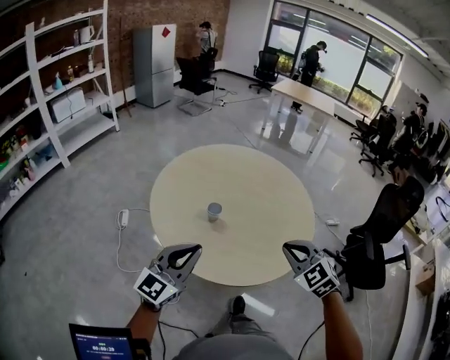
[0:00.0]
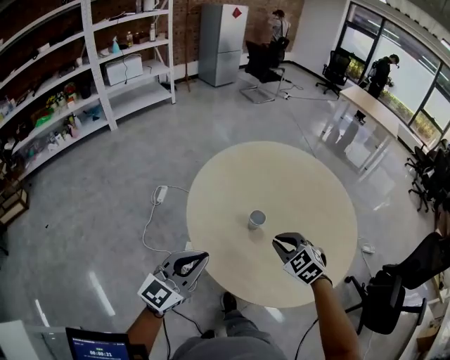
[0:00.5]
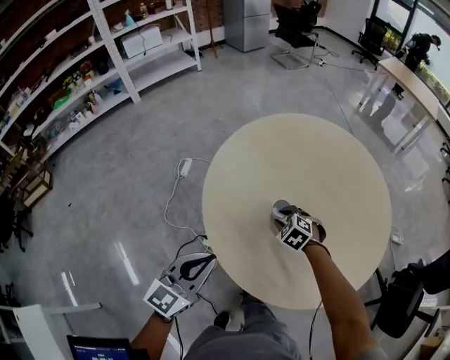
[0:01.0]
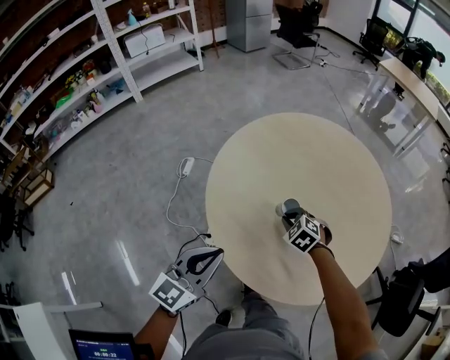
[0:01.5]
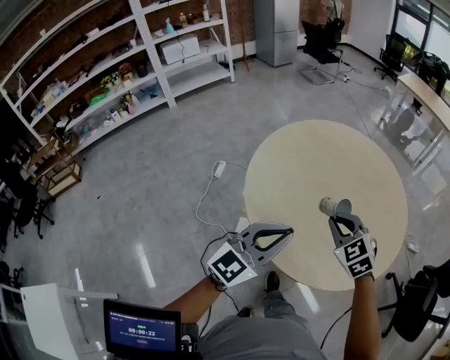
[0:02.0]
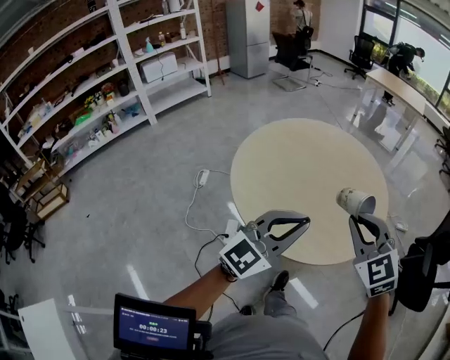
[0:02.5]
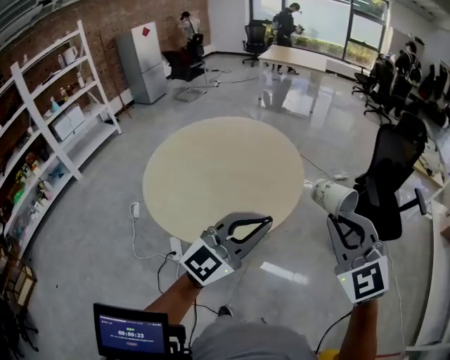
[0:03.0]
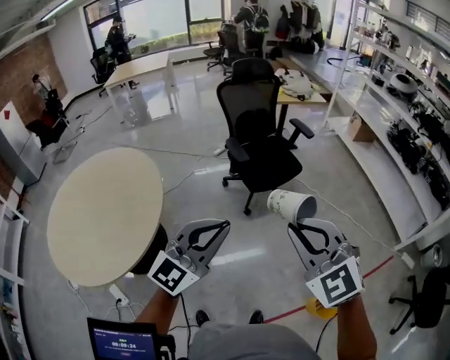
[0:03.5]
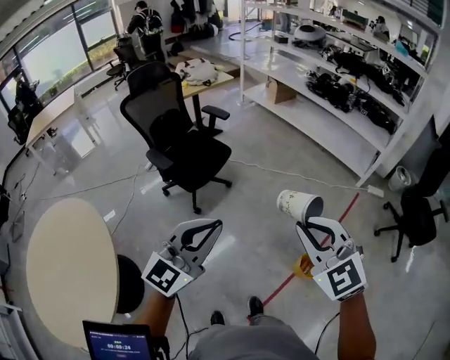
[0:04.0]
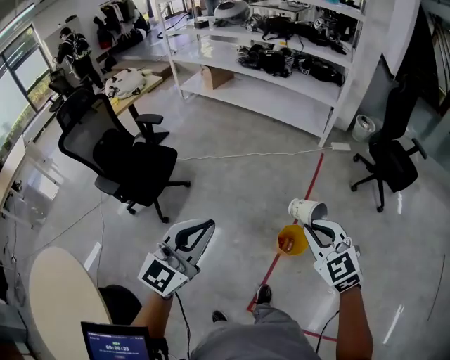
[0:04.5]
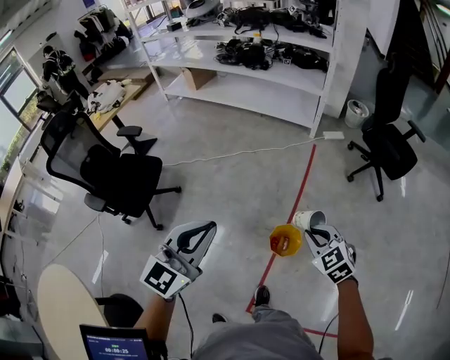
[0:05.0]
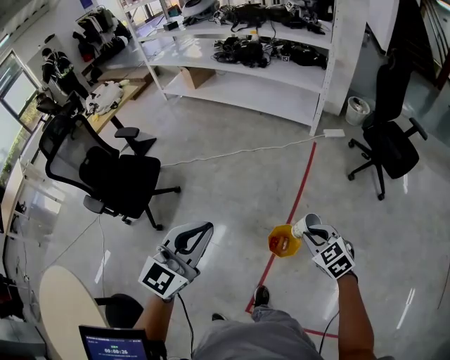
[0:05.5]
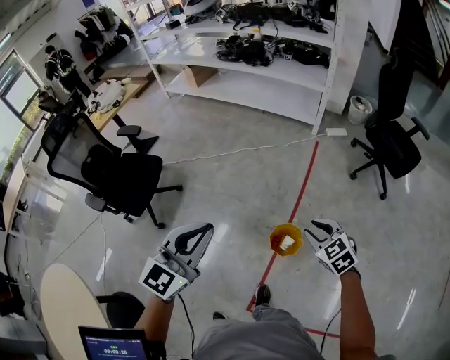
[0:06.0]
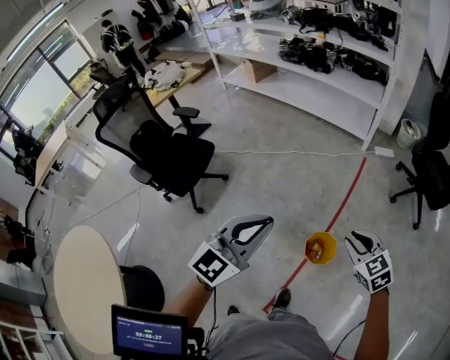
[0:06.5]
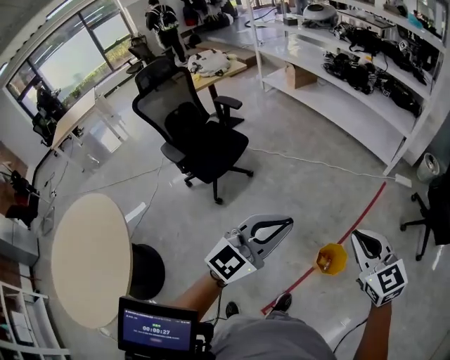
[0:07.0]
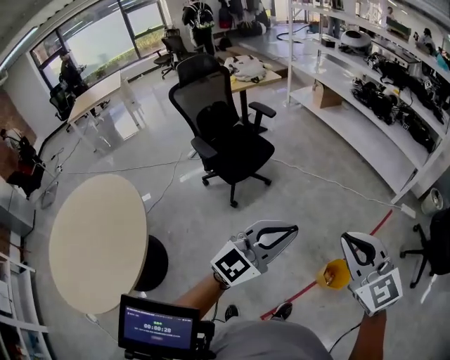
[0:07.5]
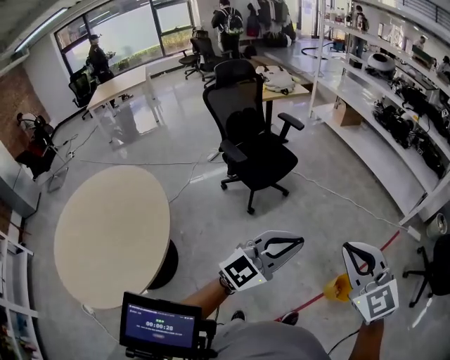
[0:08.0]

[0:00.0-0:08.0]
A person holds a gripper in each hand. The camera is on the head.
0:00.0 to 0:02.0: The right gripper reaches roughly 30 cm downward, then returns; the left gripper moves roughly 10 cm downward and comes back.
0:02.0 to 0:04.0: The two grippers travel together, some 1 m. The left gripper turns by some 90 degrees, while the right gripper turns by about 90 degrees.
0:04.0 to 0:06.0: The right gripper is displaced to the right and downward by about 50 cm, and changes its angle by roughly 40 degrees. The left gripper shifts approximately 35 cm to the right and forward, and turns by about 20 degrees.
0:06.0 to 0:08.0: The left gripper moves to the left and backward, approximately 40 cm. The right gripper shifts about 60 cm to the left, upward and backward, and tilts its fingers about 30 degrees upward.

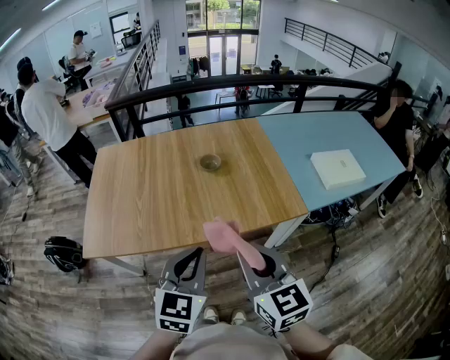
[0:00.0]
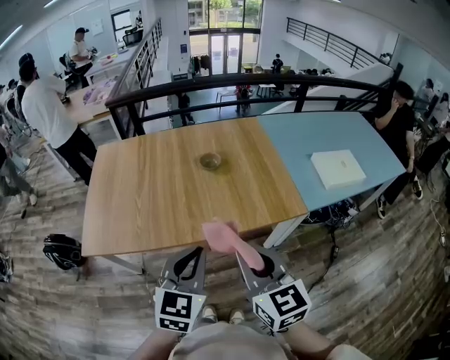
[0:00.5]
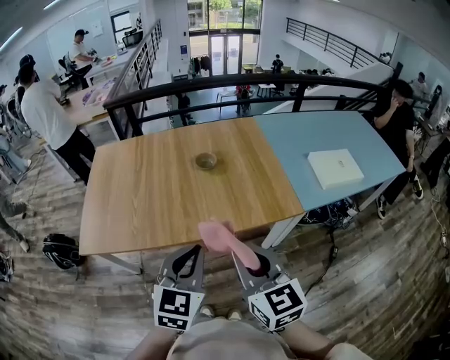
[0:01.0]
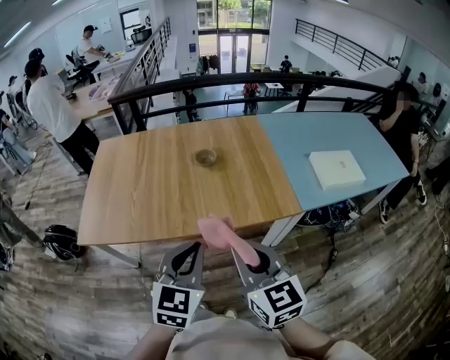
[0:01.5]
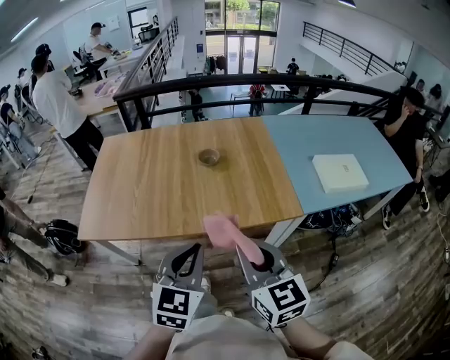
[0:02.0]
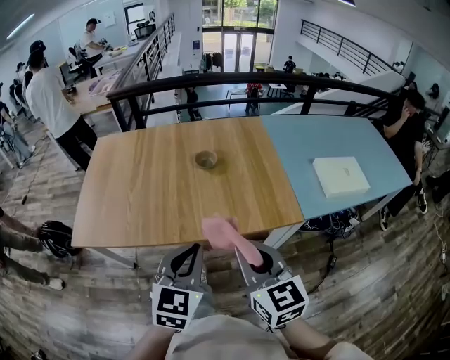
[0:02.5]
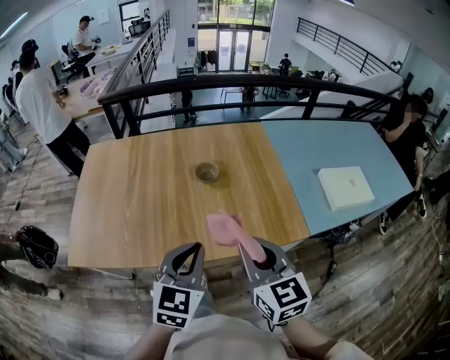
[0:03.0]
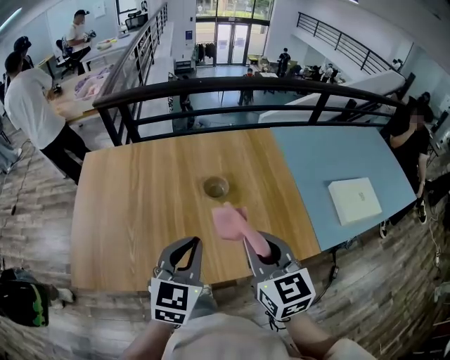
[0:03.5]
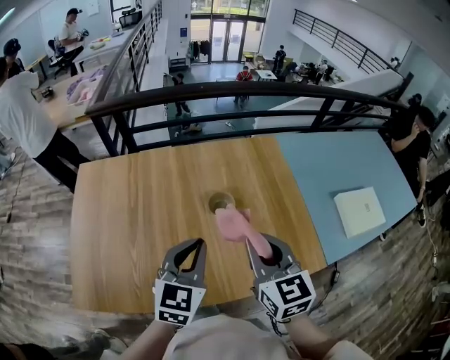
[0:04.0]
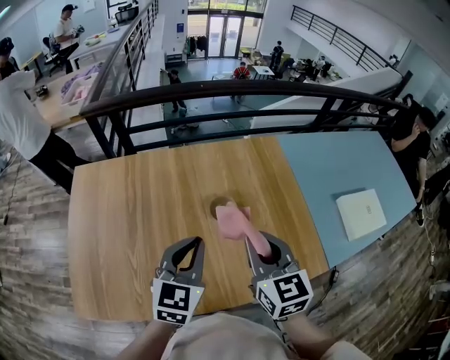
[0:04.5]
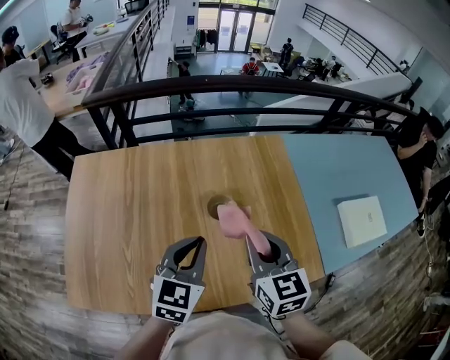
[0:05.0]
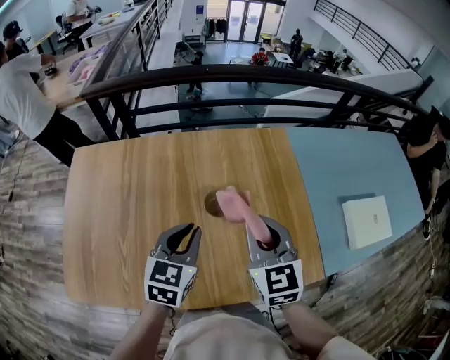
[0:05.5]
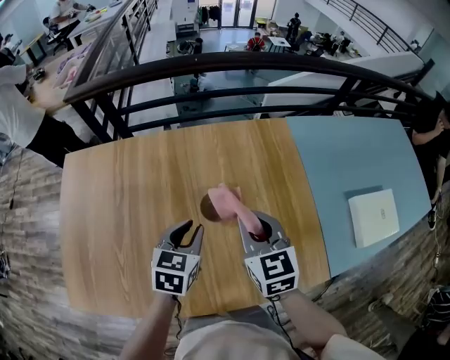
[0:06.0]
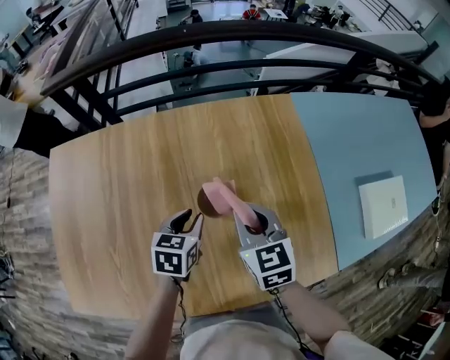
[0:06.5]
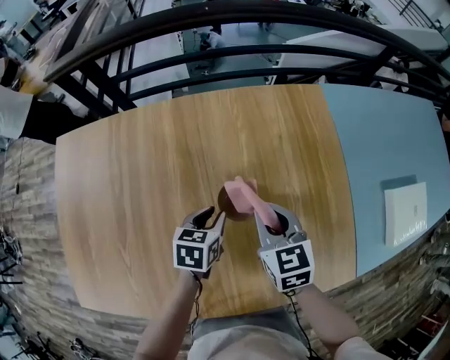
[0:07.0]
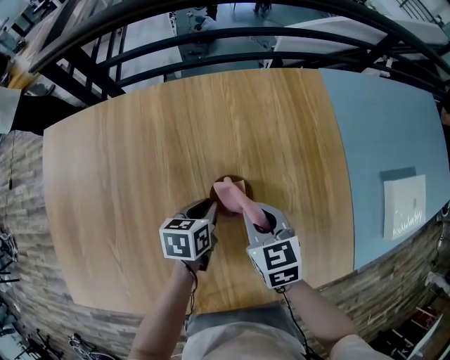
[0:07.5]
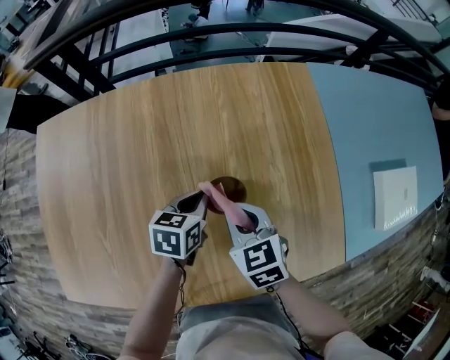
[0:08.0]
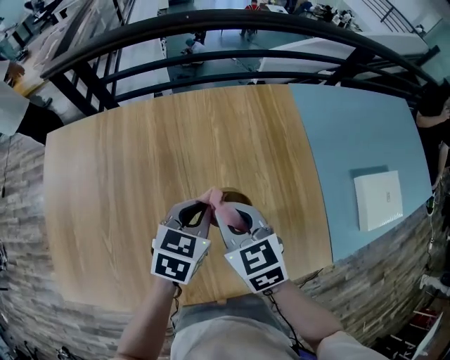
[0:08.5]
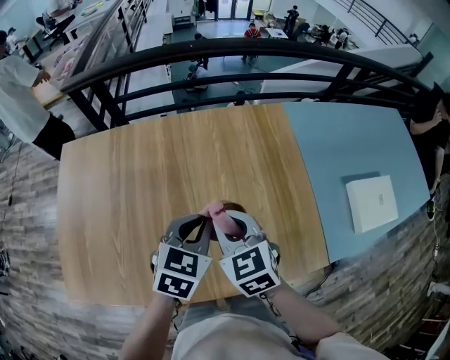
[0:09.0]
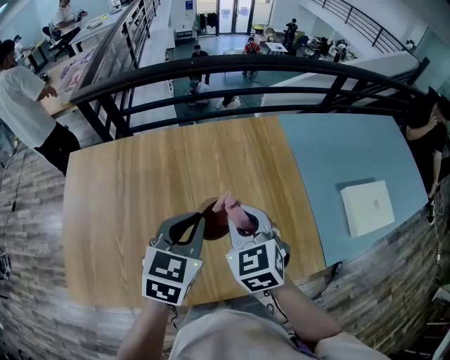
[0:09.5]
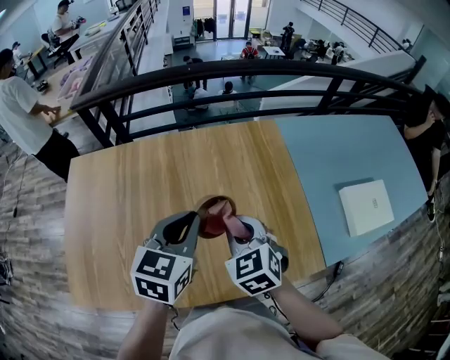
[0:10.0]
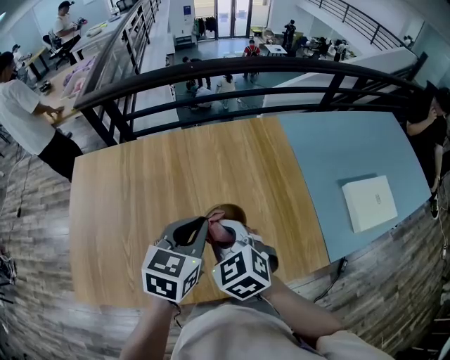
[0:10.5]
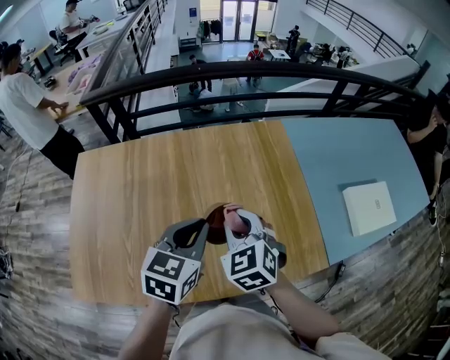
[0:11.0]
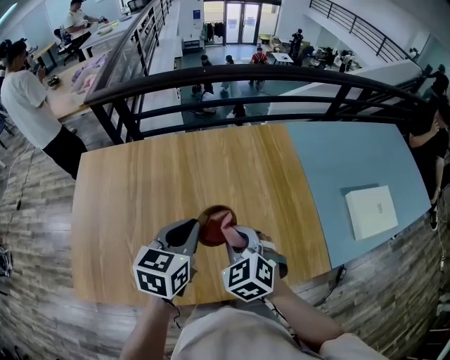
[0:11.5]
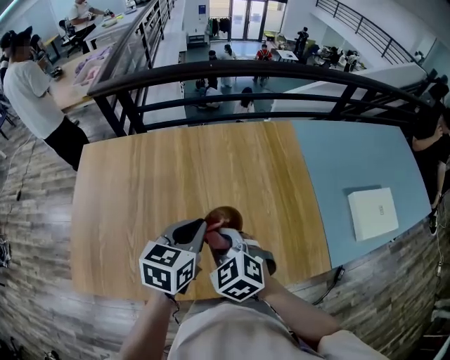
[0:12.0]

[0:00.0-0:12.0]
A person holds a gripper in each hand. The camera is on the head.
0:00.0 to 0:02.0: The grippers both shift to the right by roughly 5 cm.
0:02.0 to 0:04.0: The two grippers travel together, forward, approximately 40 cm.
0:04.0 to 0:06.0: The grippers both shift forward and downward by approximately 20 cm. The left gripper changes its angle by approximately 20 degrees.
0:06.0 to 0:08.0: The left gripper heads downward and forward, covering some 20 cm, and changes its angle by approximately 20 degrees; the right gripper is displaced downward by roughly 20 cm, and changes its angle by roughly 20 degrees.
0:08.0 to 0:10.0: The right gripper goes roughly 25 cm upward and backward. The left gripper heads upward and backward, covering some 35 cm, and changes its angle by about 30 degrees.
0:10.0 to 0:12.0: The left gripper shifts some 5 cm downward. Meanwhile the right gripper is displaced to the left and backward by about 10 cm.

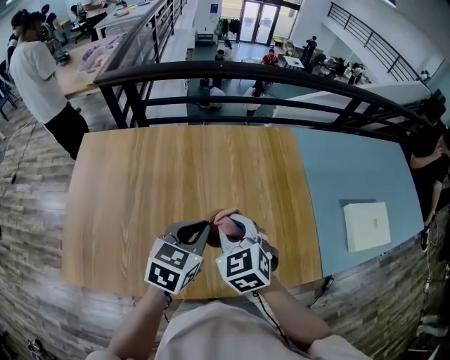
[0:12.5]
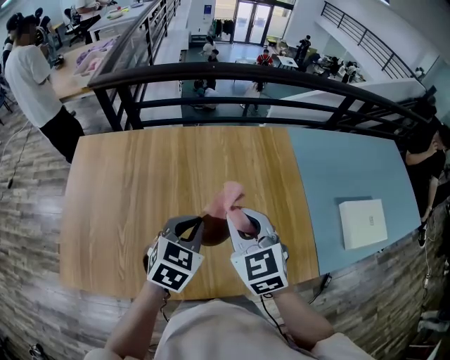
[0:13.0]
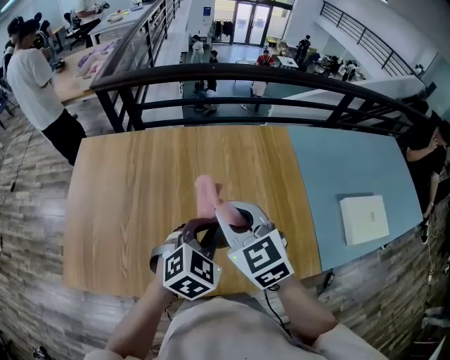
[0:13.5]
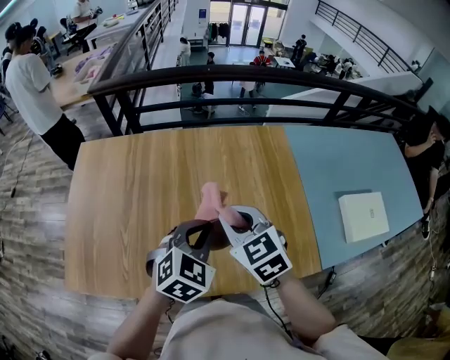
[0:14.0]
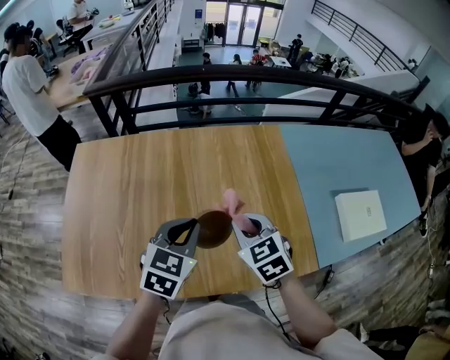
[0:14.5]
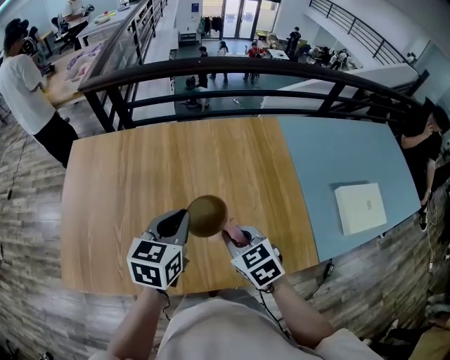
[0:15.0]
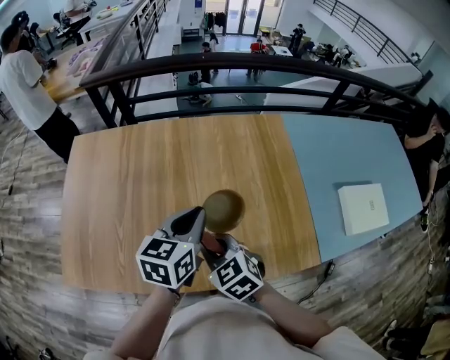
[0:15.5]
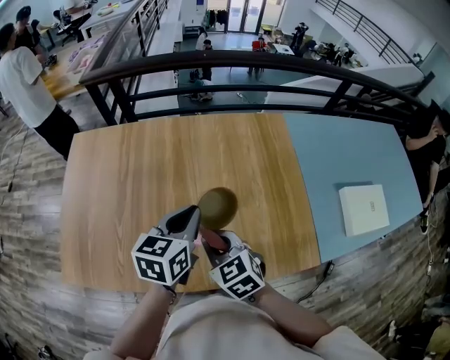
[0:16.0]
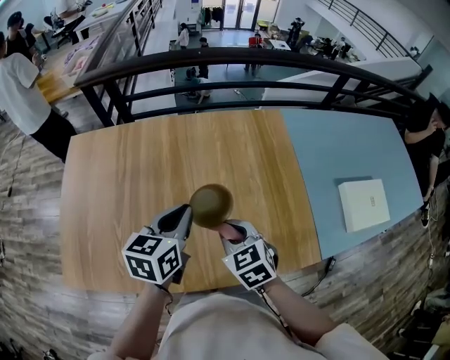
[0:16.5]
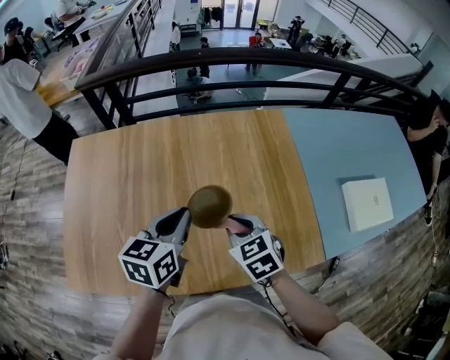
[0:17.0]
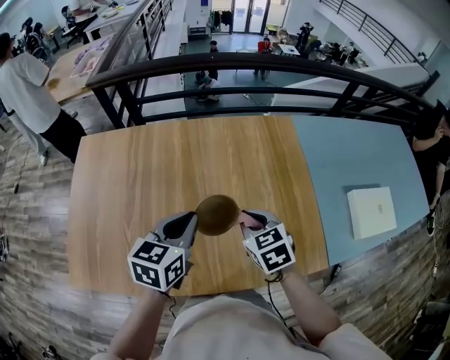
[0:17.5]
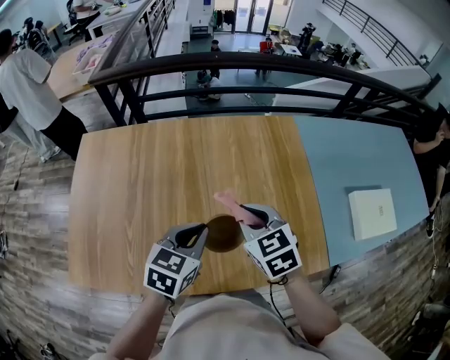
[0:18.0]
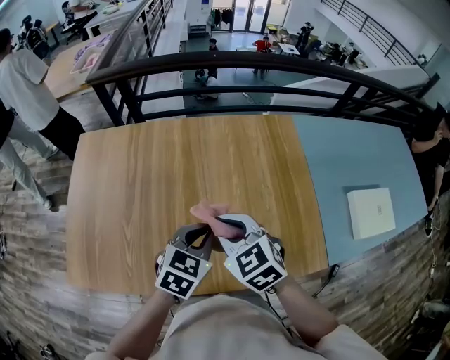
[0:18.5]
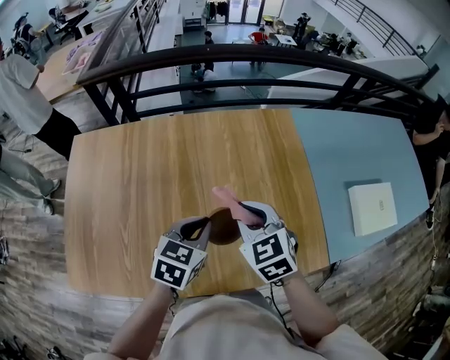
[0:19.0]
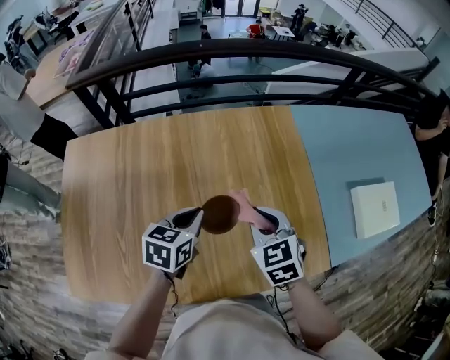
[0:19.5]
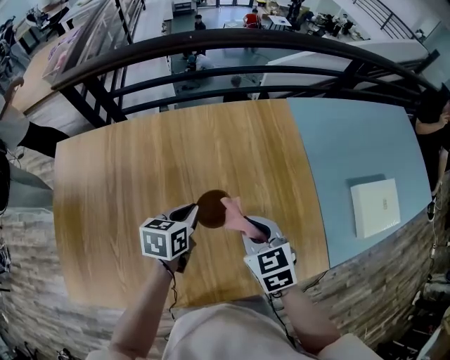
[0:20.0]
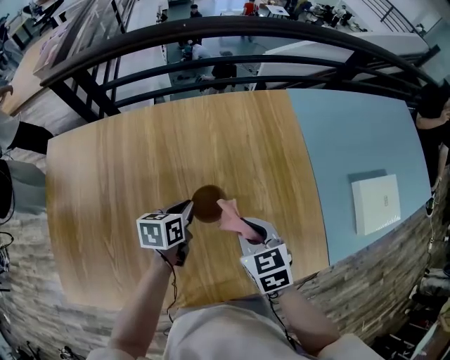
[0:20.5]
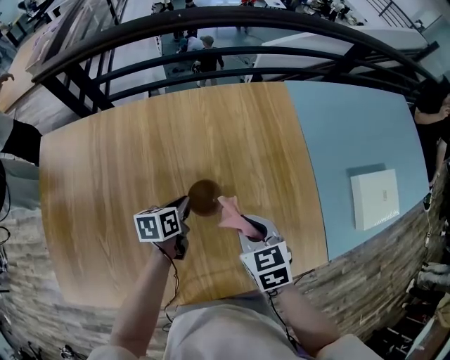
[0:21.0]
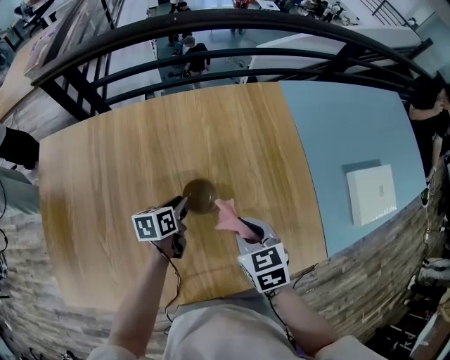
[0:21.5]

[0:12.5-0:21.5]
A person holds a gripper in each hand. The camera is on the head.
0:12.5 to 0:14.5: The right gripper moves to the right, some 5 cm, and moves some 10 cm upward and comes back.
0:14.5 to 0:17.0: The left gripper shifts by about 5 cm, and rotates about 20 degrees, while the right gripper goes some 5 cm downward, and goes to the left and returns, roughly 10 cm each way.
0:17.0 to 0:19.5: The right gripper moves forward, approximately 10 cm; the left gripper heads downward and forward, covering roughly 10 cm.
0:19.5 to 0:21.5: The left gripper shifts approximately 15 cm downward, and changes its angle by approximately 30 degrees, while the right gripper is displaced downward by about 10 cm.
